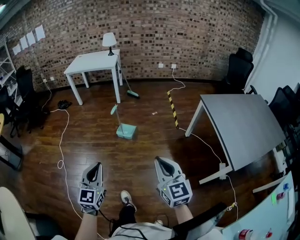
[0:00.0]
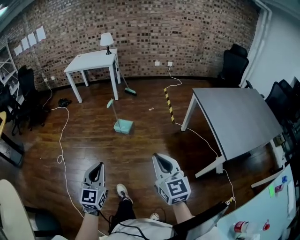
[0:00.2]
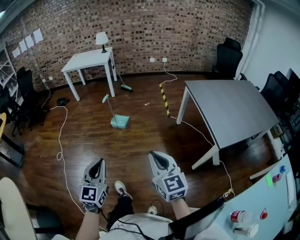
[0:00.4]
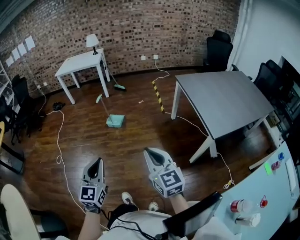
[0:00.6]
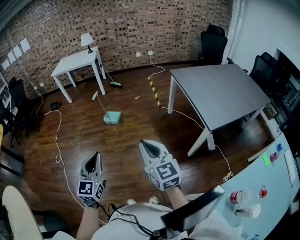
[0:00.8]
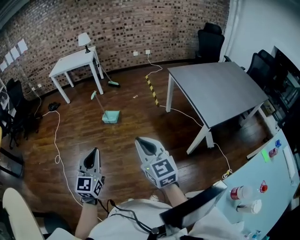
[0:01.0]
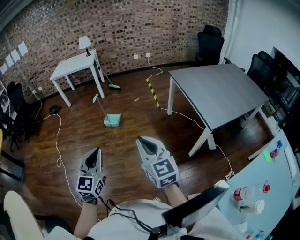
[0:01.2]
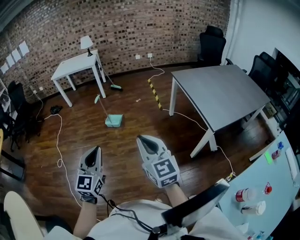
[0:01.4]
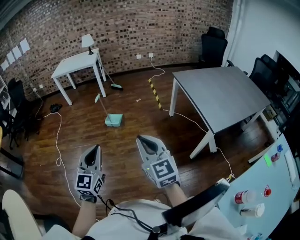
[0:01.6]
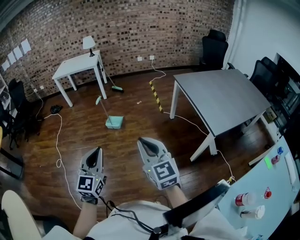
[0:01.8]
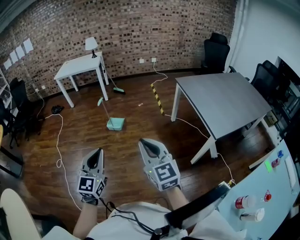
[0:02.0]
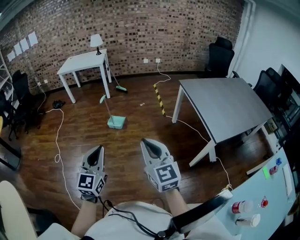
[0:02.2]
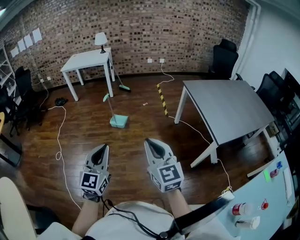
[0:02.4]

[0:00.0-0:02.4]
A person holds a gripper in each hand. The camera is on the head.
0:00.0 to 0:01.2: The right gripper travels backward by roughly 20 cm. The left gripper goes some 20 cm backward and to the right.
0:01.2 to 0:02.4: The grippers move only a little.

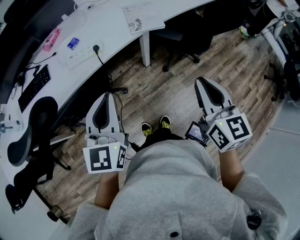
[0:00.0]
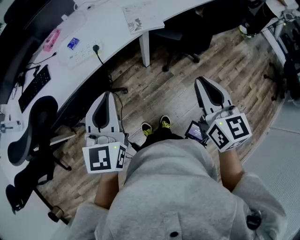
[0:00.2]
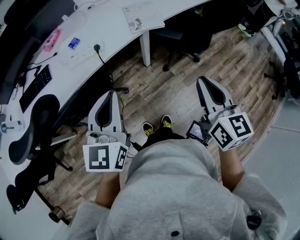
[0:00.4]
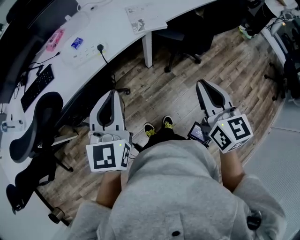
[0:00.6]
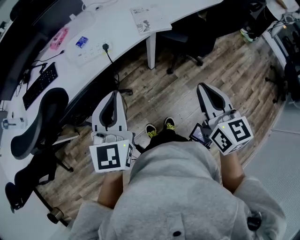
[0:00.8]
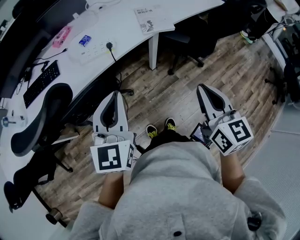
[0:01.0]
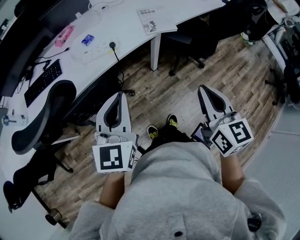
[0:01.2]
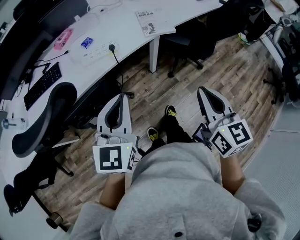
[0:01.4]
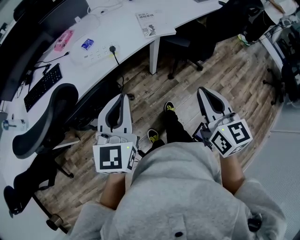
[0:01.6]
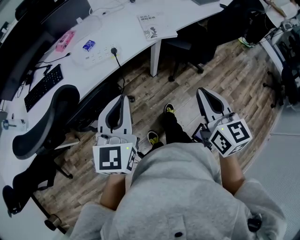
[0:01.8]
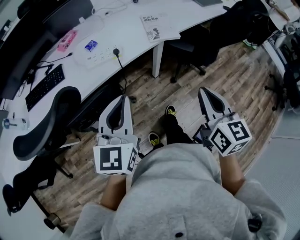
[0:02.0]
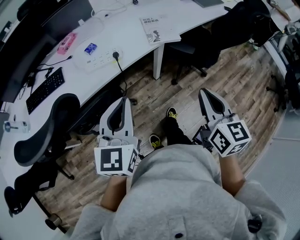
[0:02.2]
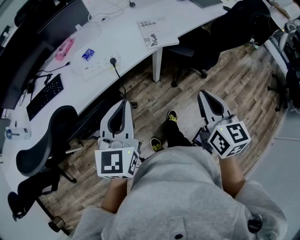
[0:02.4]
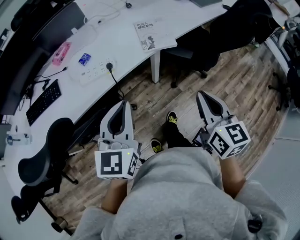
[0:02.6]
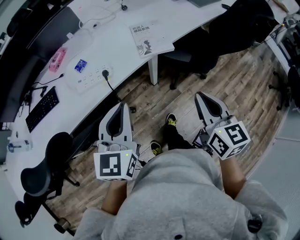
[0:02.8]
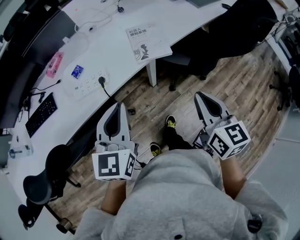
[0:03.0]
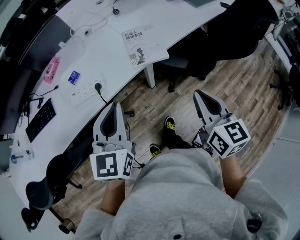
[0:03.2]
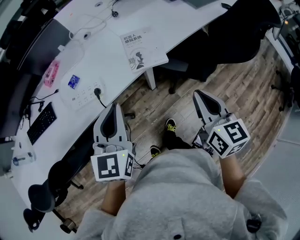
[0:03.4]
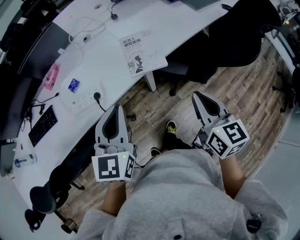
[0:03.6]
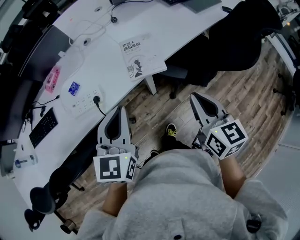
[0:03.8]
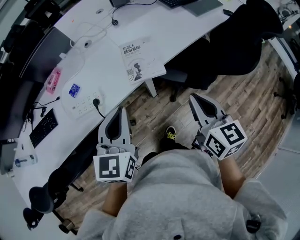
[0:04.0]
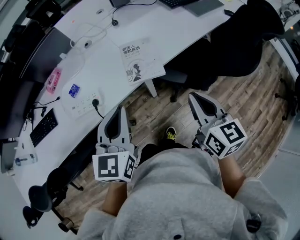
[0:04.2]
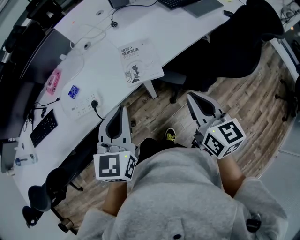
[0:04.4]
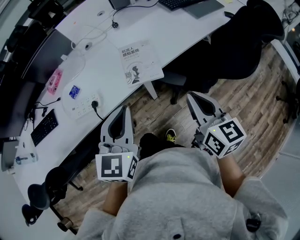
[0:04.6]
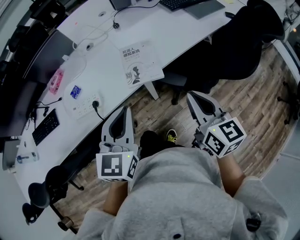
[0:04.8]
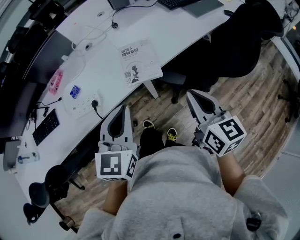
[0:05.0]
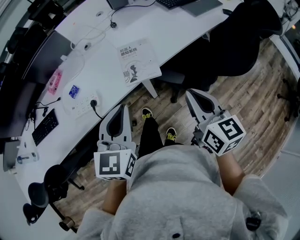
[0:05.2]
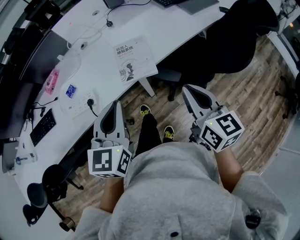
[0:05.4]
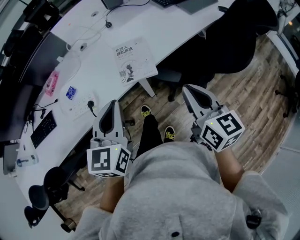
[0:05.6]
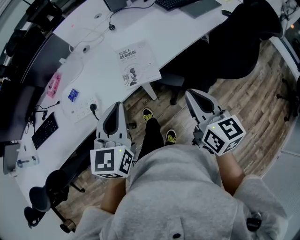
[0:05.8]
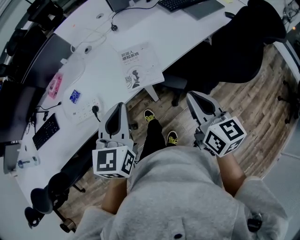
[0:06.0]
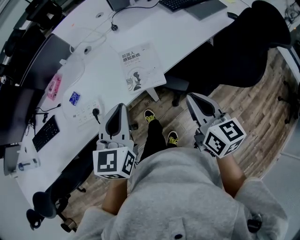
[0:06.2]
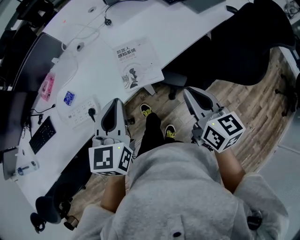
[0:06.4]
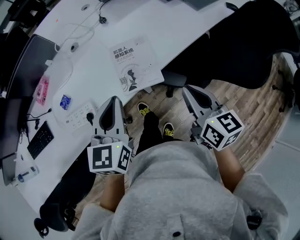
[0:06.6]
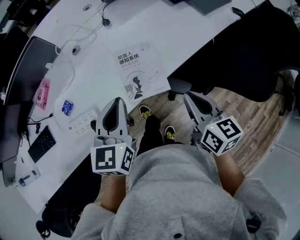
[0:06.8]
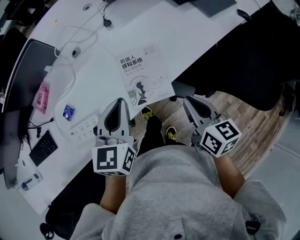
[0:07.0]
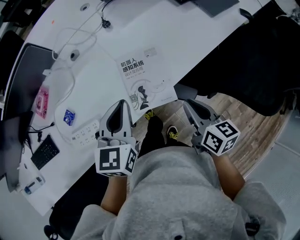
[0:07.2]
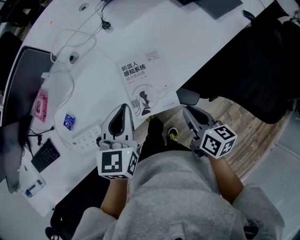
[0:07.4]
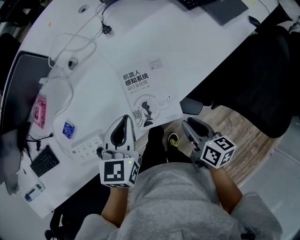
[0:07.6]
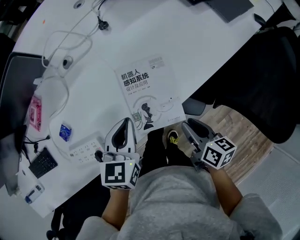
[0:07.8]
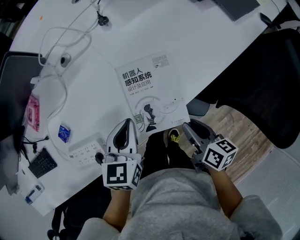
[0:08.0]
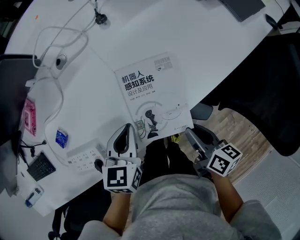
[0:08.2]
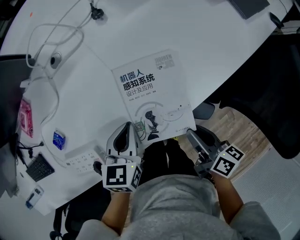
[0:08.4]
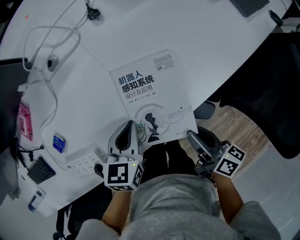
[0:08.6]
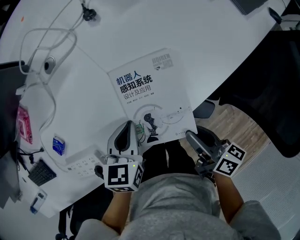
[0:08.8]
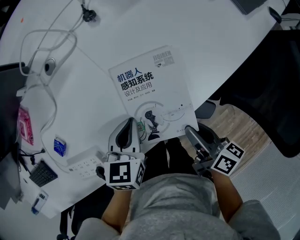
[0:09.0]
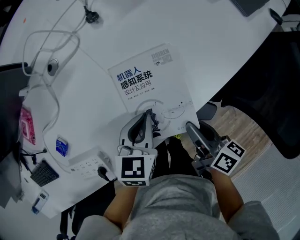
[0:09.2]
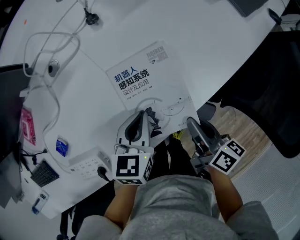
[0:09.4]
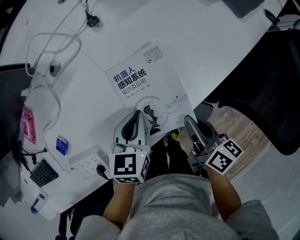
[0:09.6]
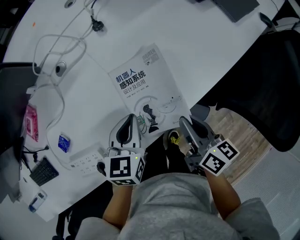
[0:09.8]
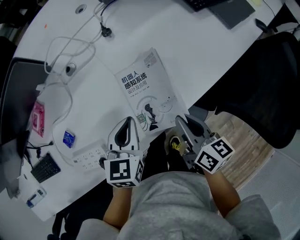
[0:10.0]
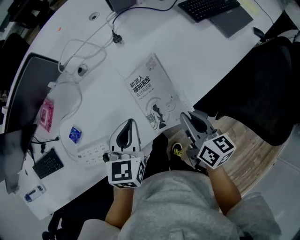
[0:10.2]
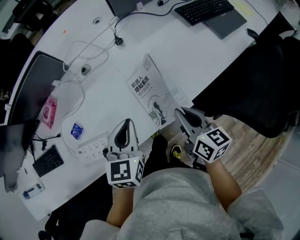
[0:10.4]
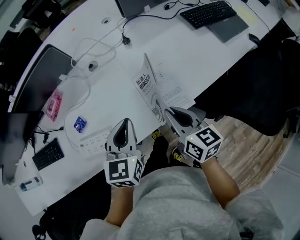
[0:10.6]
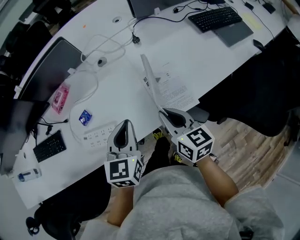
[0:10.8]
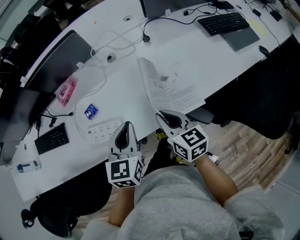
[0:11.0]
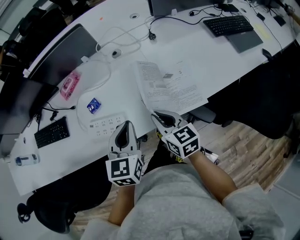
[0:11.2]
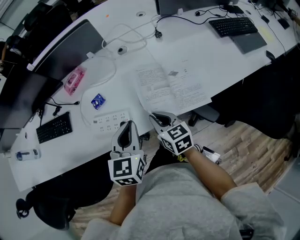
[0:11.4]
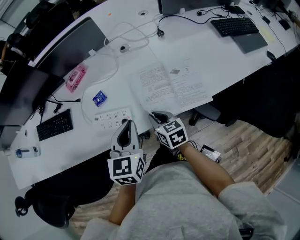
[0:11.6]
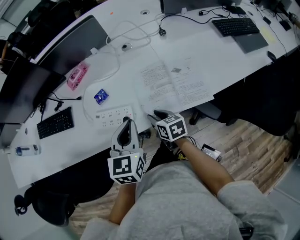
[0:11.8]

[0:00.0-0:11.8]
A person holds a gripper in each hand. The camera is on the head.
0:00.0 to 0:01.4: The right gripper heads to the left and backward, covering roughly 10 cm; the left gripper moves some 5 cm.
0:01.4 to 0:03.0: The left gripper heads forward, covering some 15 cm, while the right gripper is displaced forward and to the right by approximately 15 cm.
0:03.0 to 0:04.4: The left gripper is displaced to the right and forward by some 15 cm, while the right gripper shifts some 10 cm forward and to the right.
0:04.4 to 0:06.0: The grippers make only small movements.
0:06.0 to 0:07.4: The right gripper heads downward and forward, covering approximately 20 cm, and turns by roughly 30 degrees; the left gripper goes roughly 20 cm forward and downward.
0:07.4 to 0:08.8: The left gripper shifts some 15 cm downward. The right gripper travels downward by roughly 5 cm, and rotates roughly 20 degrees.
0:08.8 to 0:10.4: The two grippers go some 15 cm upward. The right gripper changes its angle by about 30 degrees. The left gripper turns by roughly 20 degrees.
0:10.4 to 0:11.8: The right gripper heads to the left and downward, covering about 25 cm, and rotates approximately 30 degrees, while the left gripper shifts about 15 cm to the left and backward.

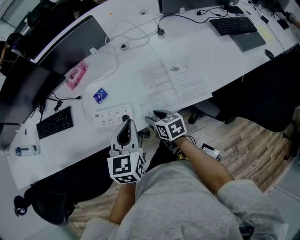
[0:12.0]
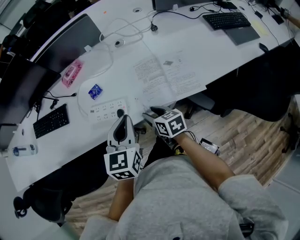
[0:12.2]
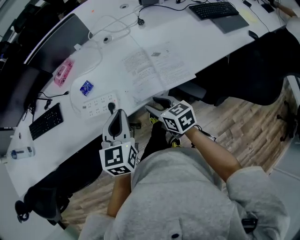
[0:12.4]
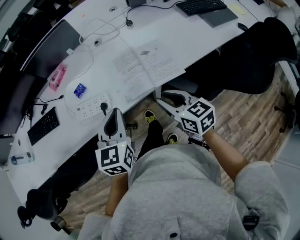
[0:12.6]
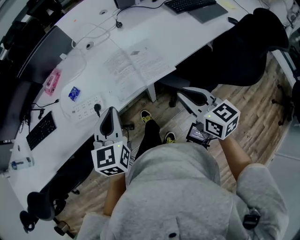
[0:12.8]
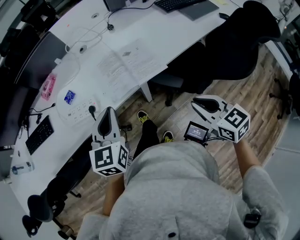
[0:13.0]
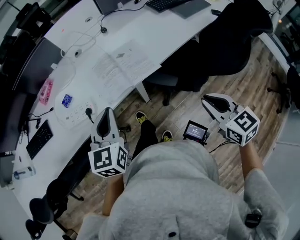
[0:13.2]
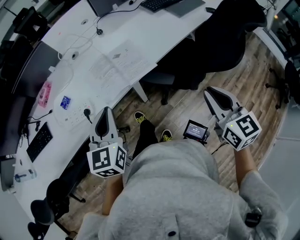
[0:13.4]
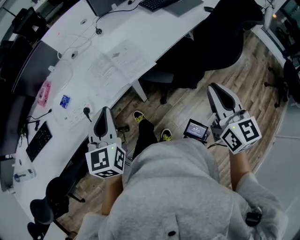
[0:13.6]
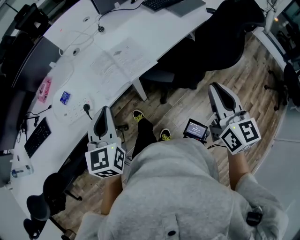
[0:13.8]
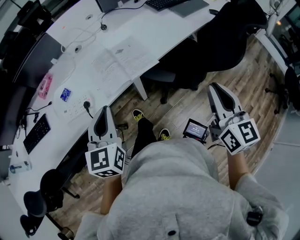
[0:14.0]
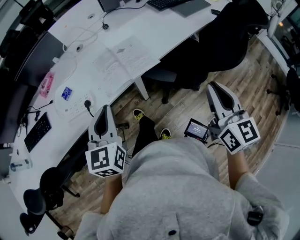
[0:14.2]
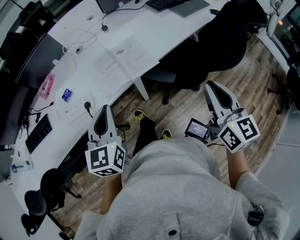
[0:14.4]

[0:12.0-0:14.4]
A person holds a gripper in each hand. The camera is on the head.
0:12.0 to 0:13.2: The right gripper moves to the right, backward and upward, about 40 cm, turns by some 30 degrees, and closes up; the left gripper goes some 15 cm backward and to the right.
0:13.2 to 0:14.4: The right gripper moves upward, some 10 cm, and swivels roughly 30 degrees.

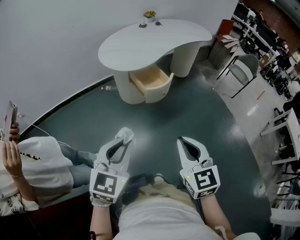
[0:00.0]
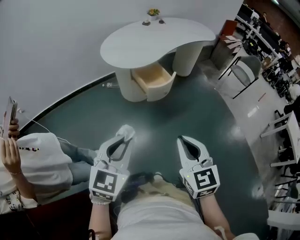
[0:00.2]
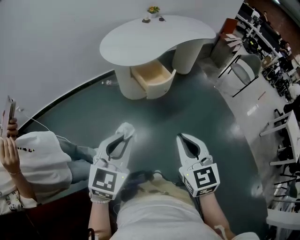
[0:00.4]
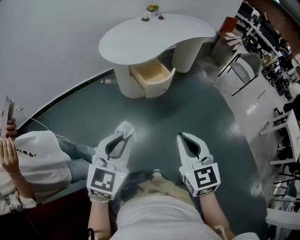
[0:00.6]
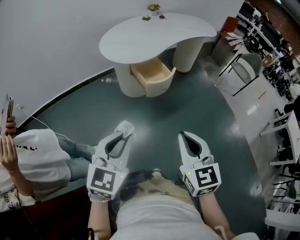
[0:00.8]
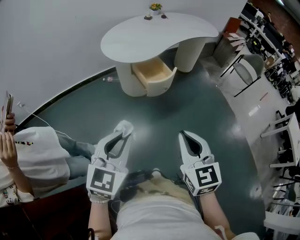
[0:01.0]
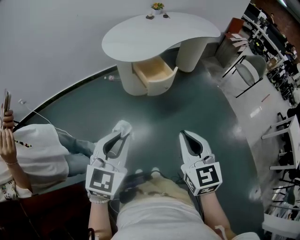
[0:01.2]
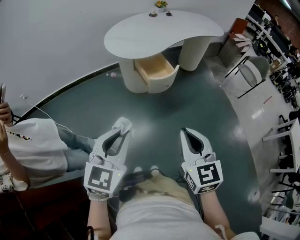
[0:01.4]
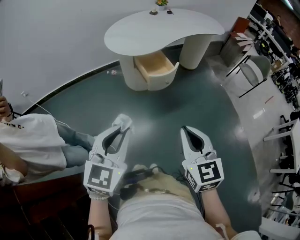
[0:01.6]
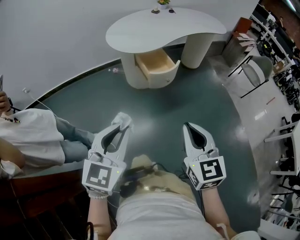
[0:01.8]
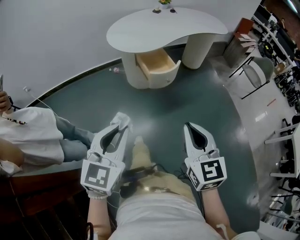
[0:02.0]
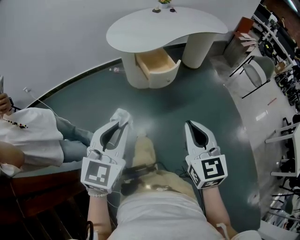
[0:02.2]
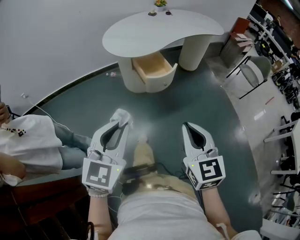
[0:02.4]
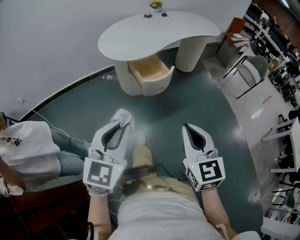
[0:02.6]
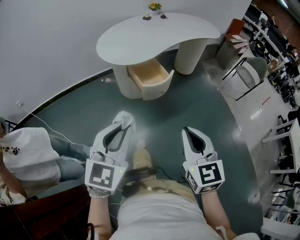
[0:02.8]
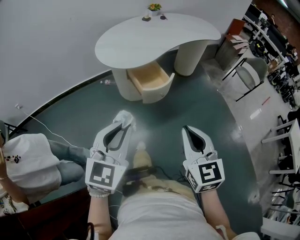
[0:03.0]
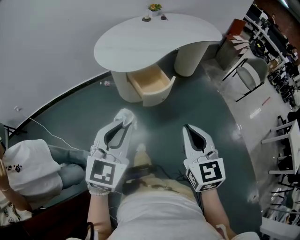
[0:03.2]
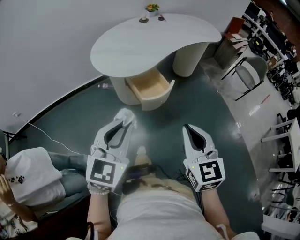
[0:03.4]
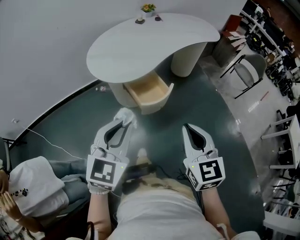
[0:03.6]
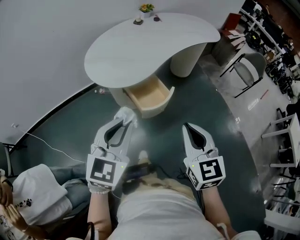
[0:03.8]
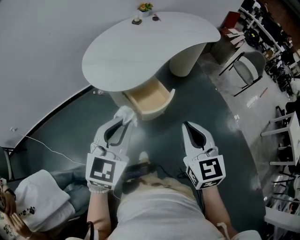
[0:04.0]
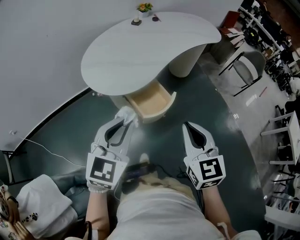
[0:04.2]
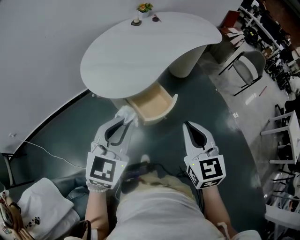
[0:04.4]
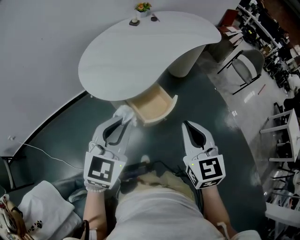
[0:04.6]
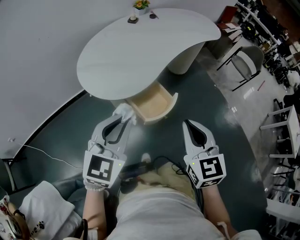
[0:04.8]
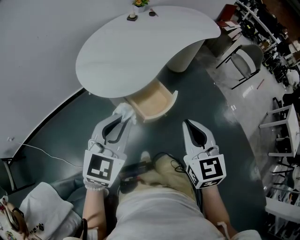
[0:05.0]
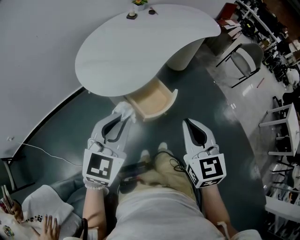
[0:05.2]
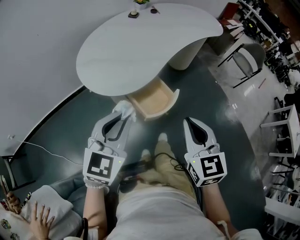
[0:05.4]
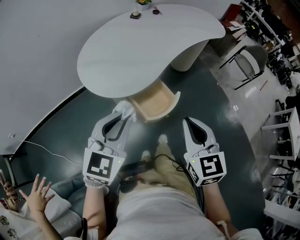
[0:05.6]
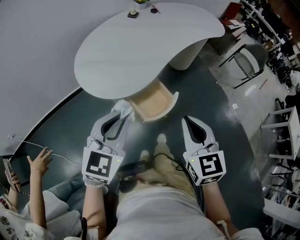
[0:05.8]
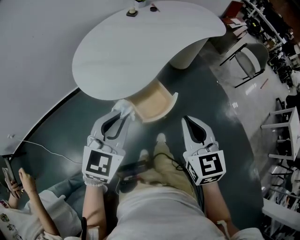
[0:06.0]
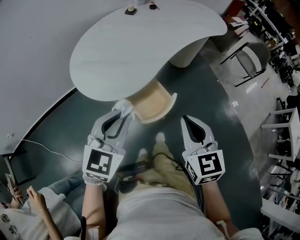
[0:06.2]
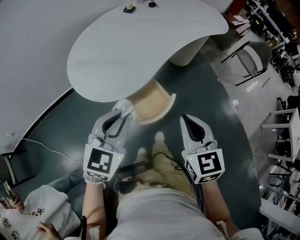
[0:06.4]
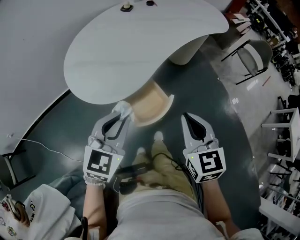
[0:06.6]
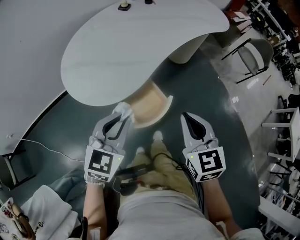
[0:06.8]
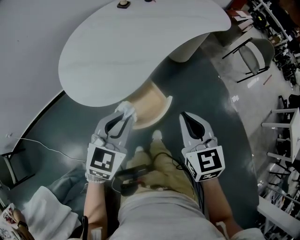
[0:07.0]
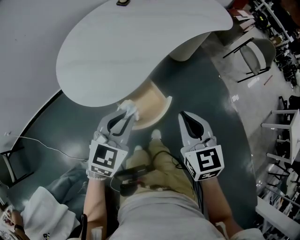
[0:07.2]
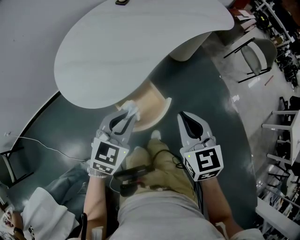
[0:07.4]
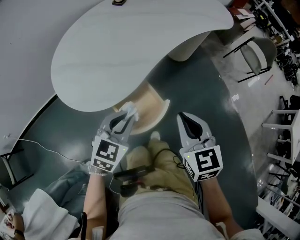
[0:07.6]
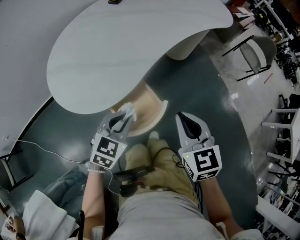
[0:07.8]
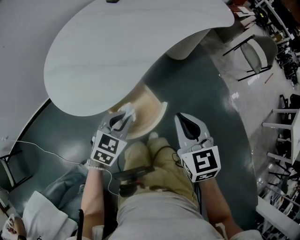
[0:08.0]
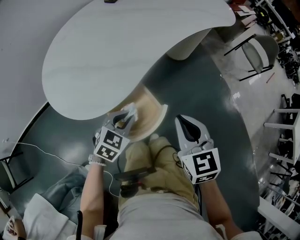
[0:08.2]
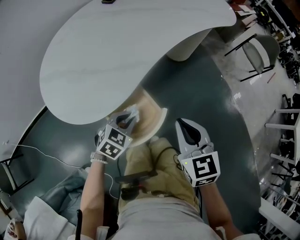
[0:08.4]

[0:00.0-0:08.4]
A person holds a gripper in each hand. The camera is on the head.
0:00.0 to 0:01.4: The grippers make only small movements.
0:01.4 to 0:02.8: The grippers both shift forward by about 5 cm.
0:02.8 to 0:04.2: Both grippers move forward, roughly 25 cm.
0:04.2 to 0:05.6: The grippers both shift forward by roughly 5 cm.
0:05.6 to 0:07.0: The two grippers go roughly 15 cm forward, downward and to the right.
0:07.0 to 0:08.4: The right gripper shifts approximately 10 cm downward and forward. The left gripper heads downward, covering roughly 20 cm, and rotates approximately 20 degrees.
